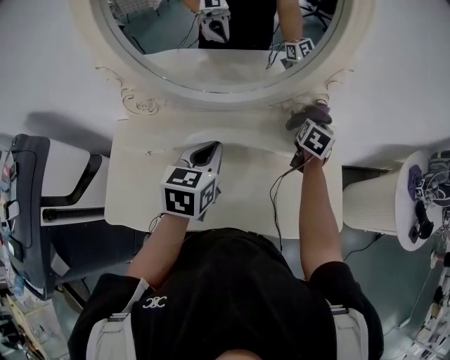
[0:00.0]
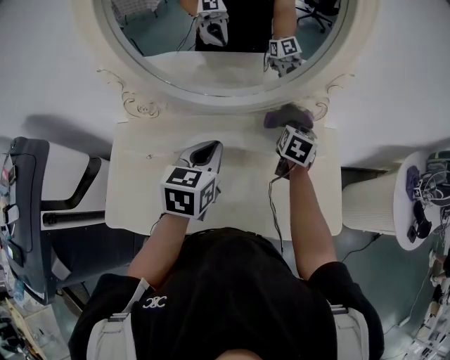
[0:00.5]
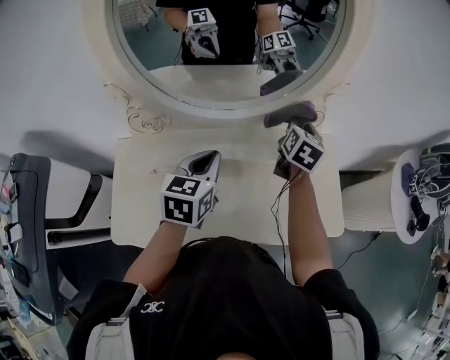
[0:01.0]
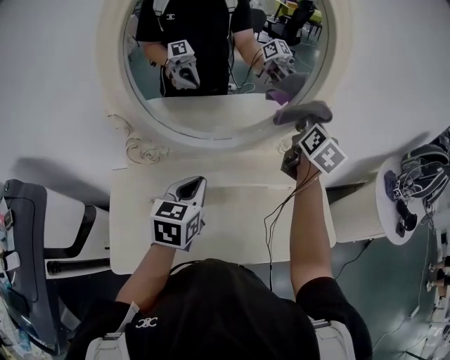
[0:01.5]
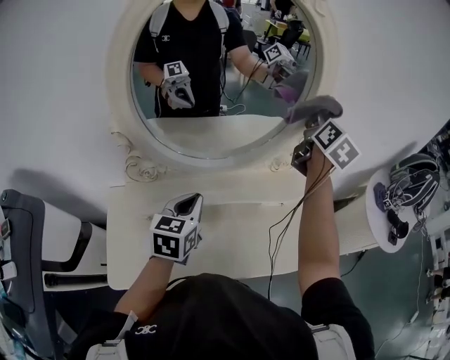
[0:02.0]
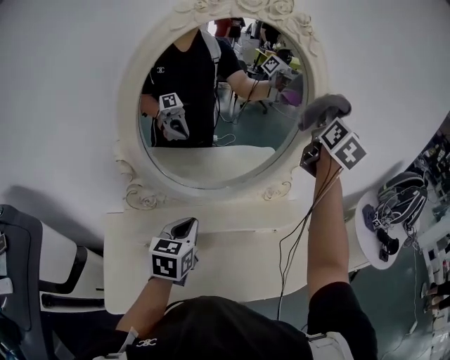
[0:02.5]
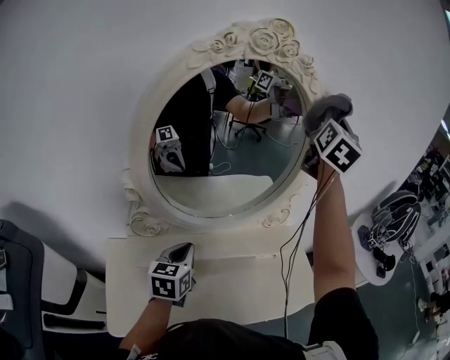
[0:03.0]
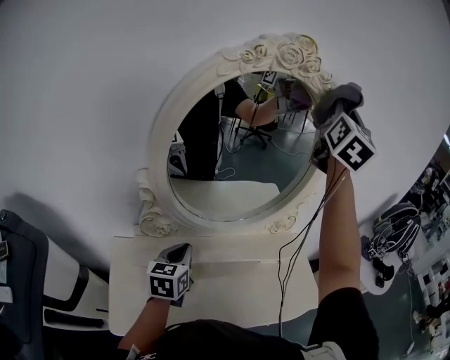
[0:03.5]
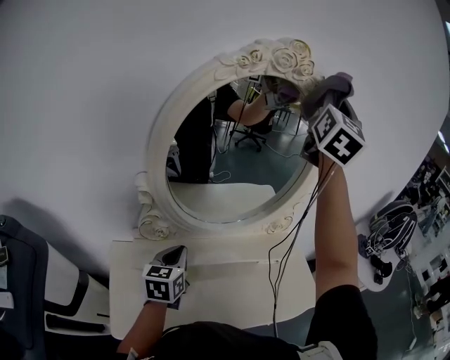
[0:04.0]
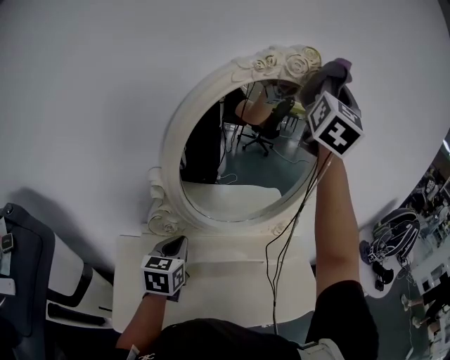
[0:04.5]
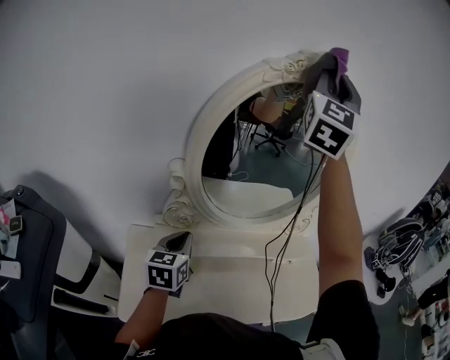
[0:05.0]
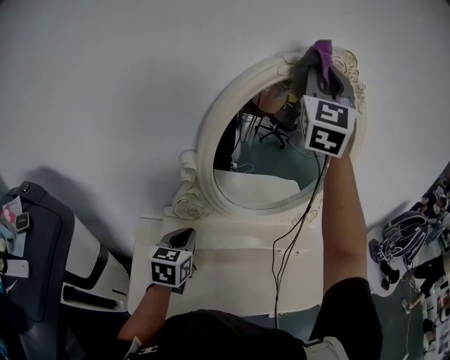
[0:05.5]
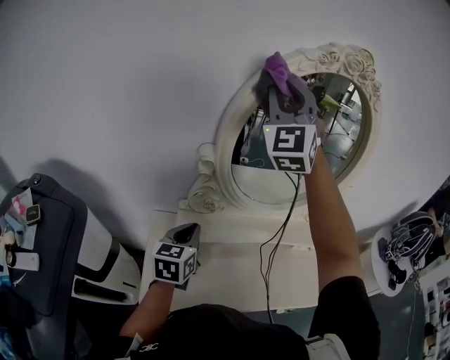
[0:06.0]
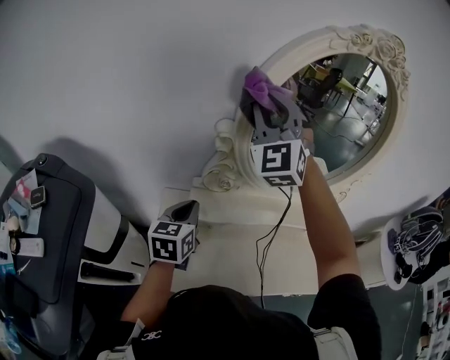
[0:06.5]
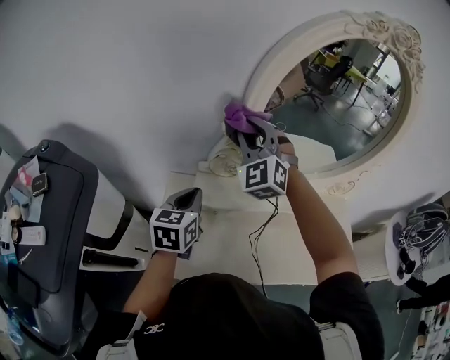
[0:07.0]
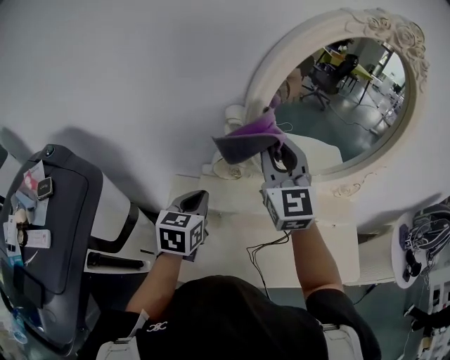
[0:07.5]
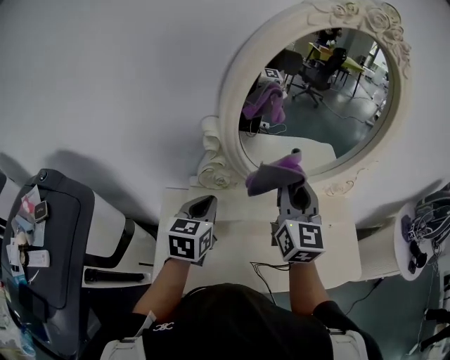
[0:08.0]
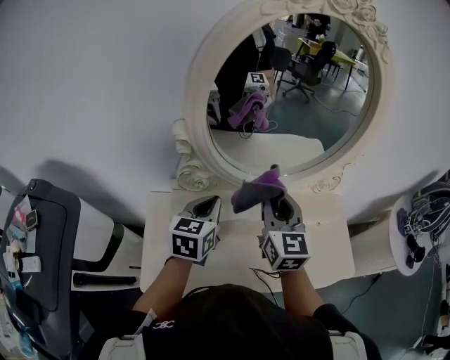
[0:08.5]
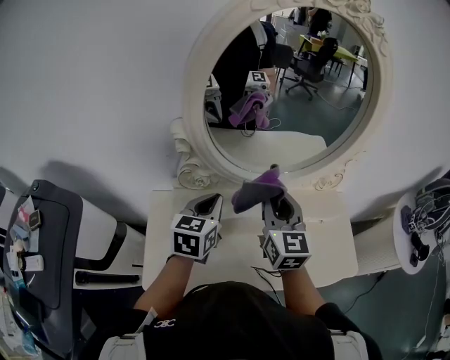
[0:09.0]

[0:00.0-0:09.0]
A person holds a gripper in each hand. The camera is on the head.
0:00.0 to 0:02.0: The right gripper heads upward, covering approximately 30 cm, and tips its fingers upward by about 30 degrees. Meanwhile the left gripper travels to the left by roughly 5 cm.
0:02.0 to 0:04.5: The right gripper moves upward and to the left, some 35 cm, and points its fingers some 30 degrees further upward; the left gripper goes roughly 10 cm to the left.
0:04.5 to 0:07.0: The right gripper shifts approximately 50 cm downward and to the left, and tilts its fingers approximately 40 degrees downward. Meanwhile the left gripper heads to the left, covering roughly 15 cm.
0:07.0 to 0:09.0: The two grippers go some 20 cm to the right. The right gripper rolls clockwise, seen from behind, by roughly 60 degrees.

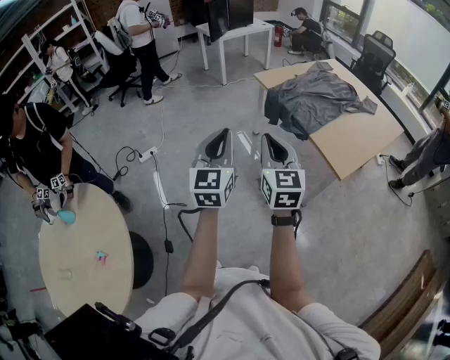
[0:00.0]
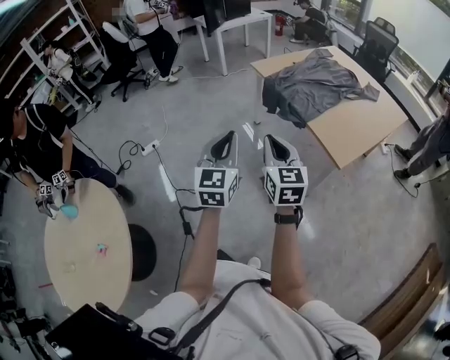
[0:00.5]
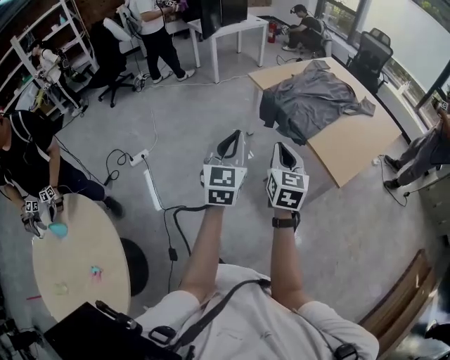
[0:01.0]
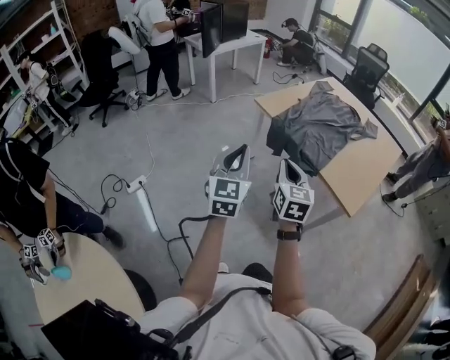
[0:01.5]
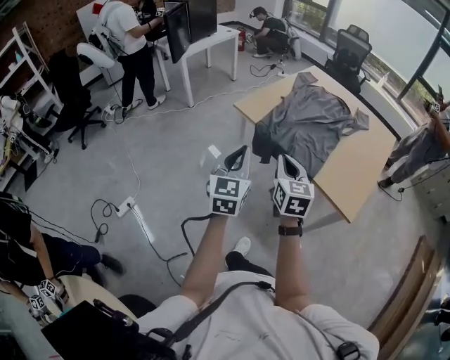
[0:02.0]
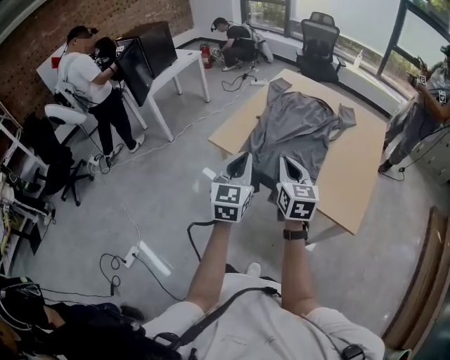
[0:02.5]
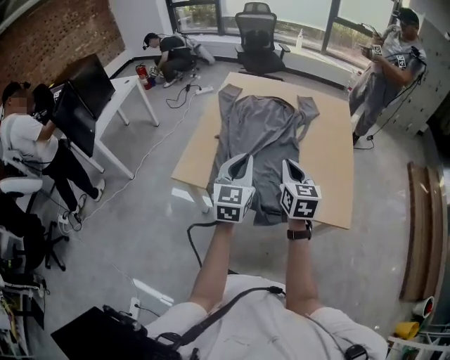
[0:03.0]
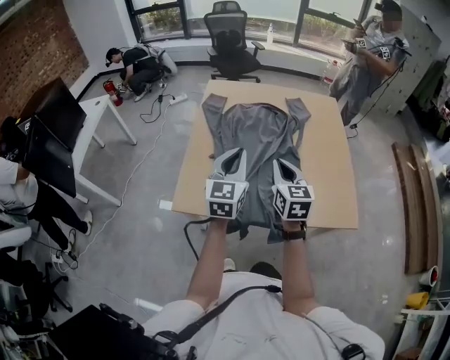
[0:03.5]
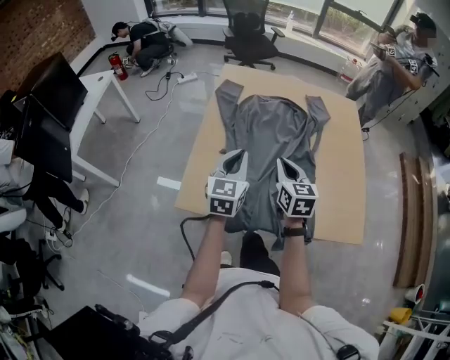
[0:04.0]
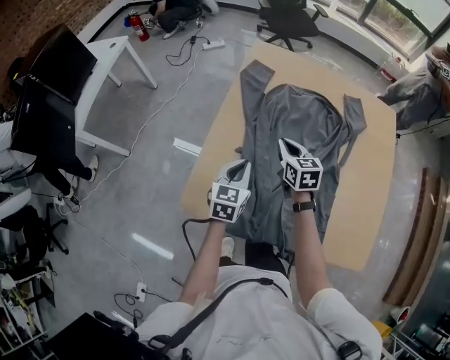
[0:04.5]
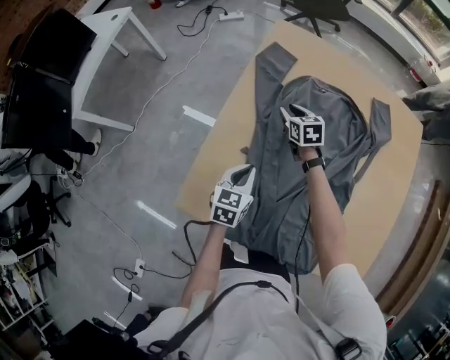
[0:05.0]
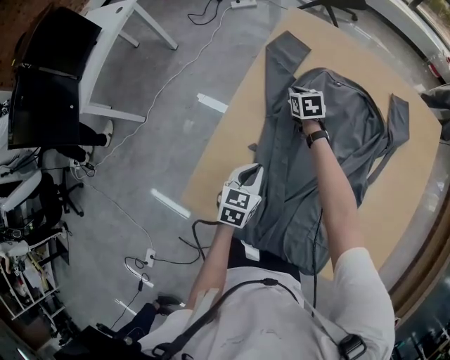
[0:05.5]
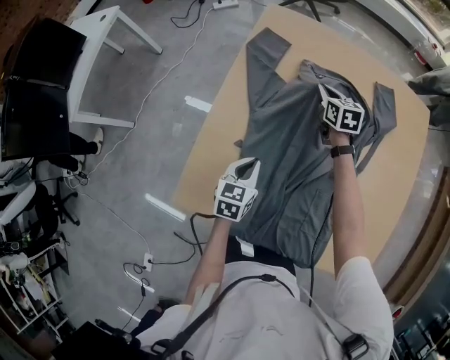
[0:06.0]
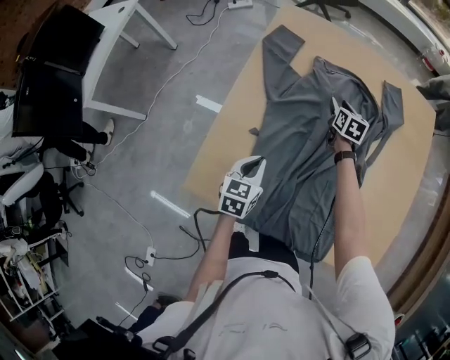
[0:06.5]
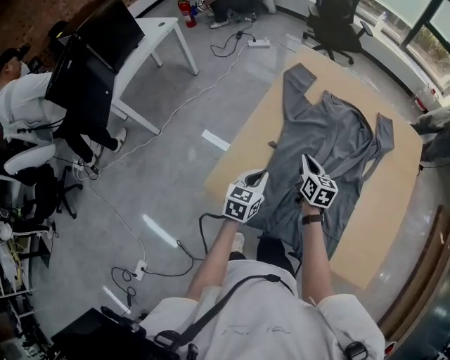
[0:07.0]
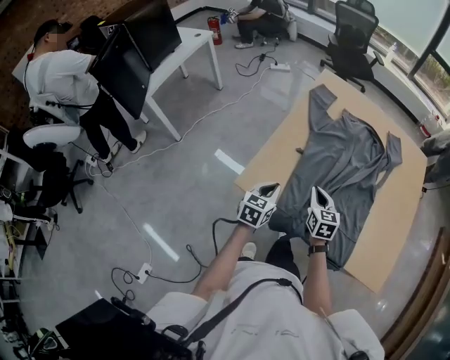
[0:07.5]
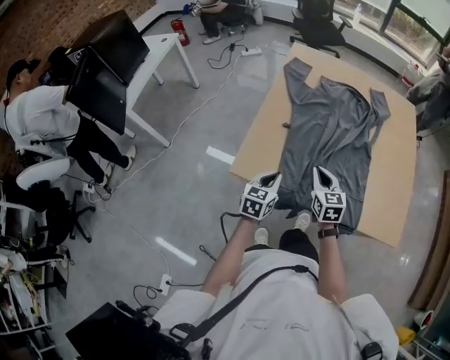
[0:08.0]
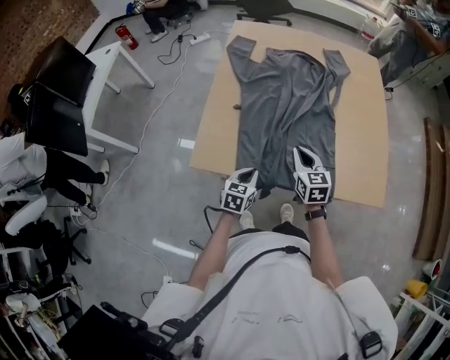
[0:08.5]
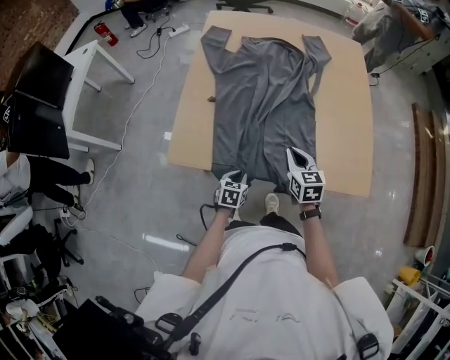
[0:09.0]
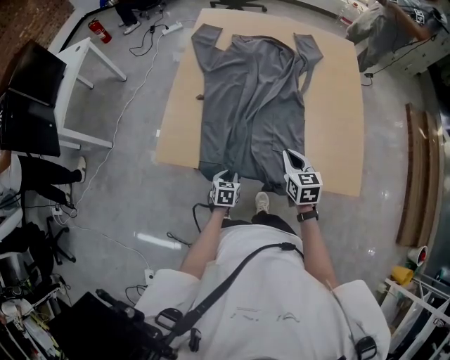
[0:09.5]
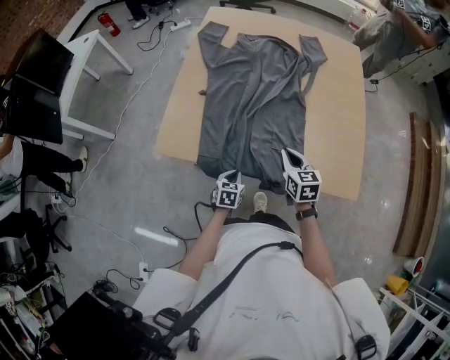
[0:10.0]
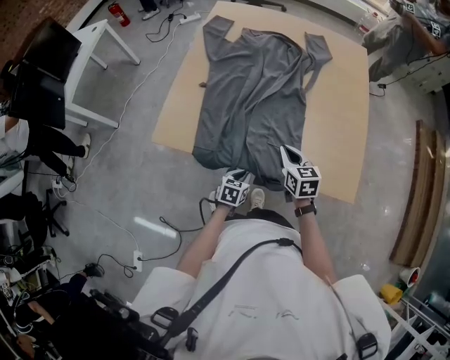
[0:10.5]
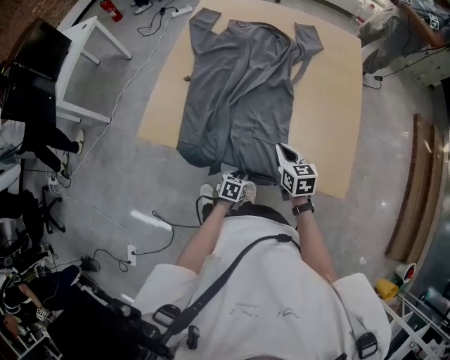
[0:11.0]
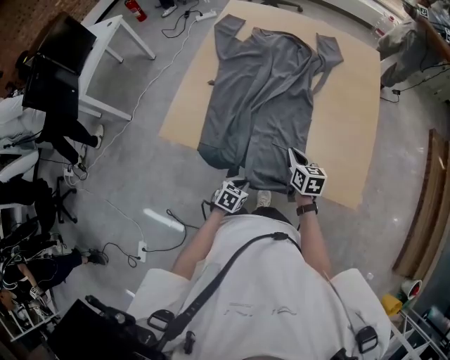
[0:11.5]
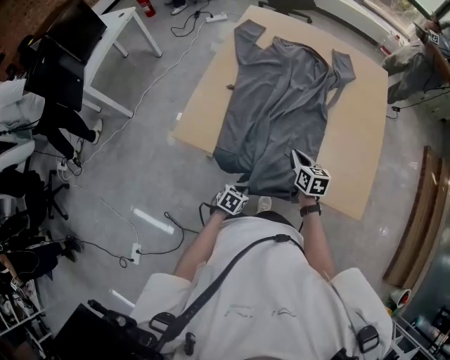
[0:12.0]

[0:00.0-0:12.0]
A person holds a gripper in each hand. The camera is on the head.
0:00.0 to 0:02.0: The two grippers go approximately 30 cm forward. The left gripper swivels roughly 20 degrees; the right gripper turns by some 30 degrees.
0:02.0 to 0:04.0: Both grippers are carried roughly 50 cm. The right gripper changes its angle by roughly 30 degrees. Meanwhile the left gripper rotates about 40 degrees.
0:04.0 to 0:06.0: The right gripper is displaced forward and downward by about 40 cm, and opens, then closes once more; the left gripper goes some 25 cm downward and forward, and swivels approximately 30 degrees.
0:06.0 to 0:08.0: The left gripper heads backward, covering approximately 20 cm. Meanwhile the right gripper is displaced backward by some 50 cm, and opens and closes again.
0:08.0 to 0:10.0: The left gripper travels to the right and downward by approximately 25 cm, rotates some 20 degrees, and opens, then closes again, while the right gripper shifts about 20 cm to the right.
0:10.0 to 0:12.0: The left gripper is displaced backward by about 5 cm, goes to the right and returns, about 10 cm each way, and opens, then closes once more. Meanwhile the right gripper moves roughly 5 cm to the right and comes back.

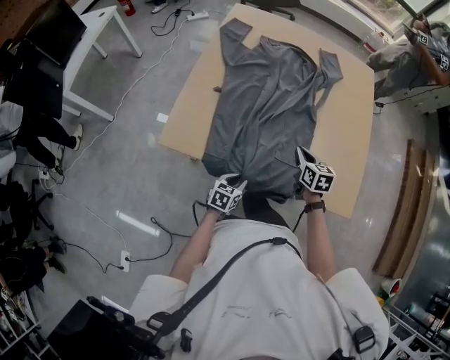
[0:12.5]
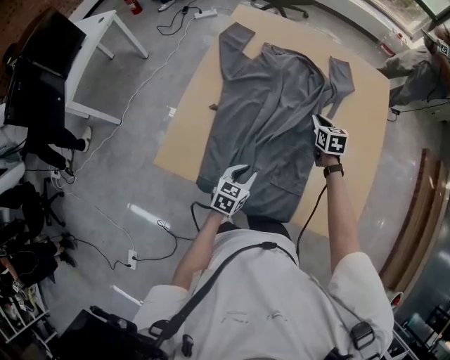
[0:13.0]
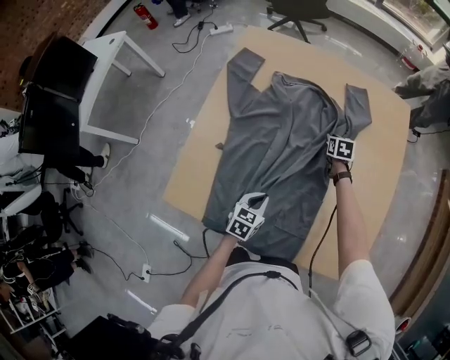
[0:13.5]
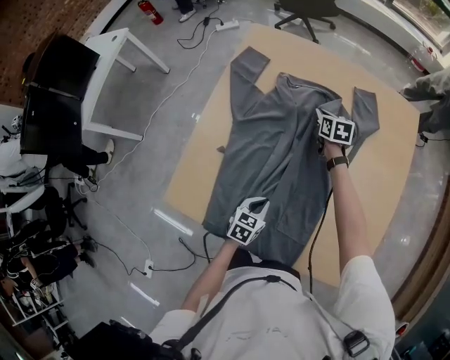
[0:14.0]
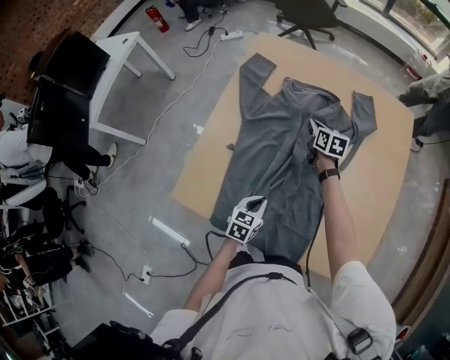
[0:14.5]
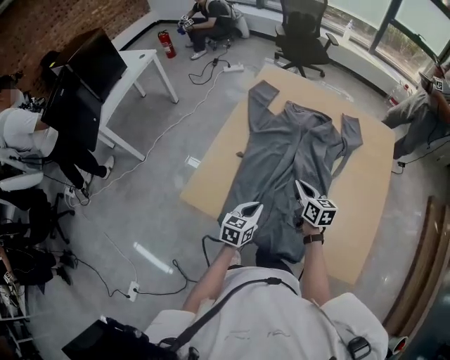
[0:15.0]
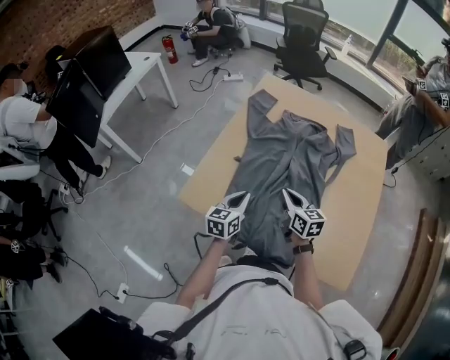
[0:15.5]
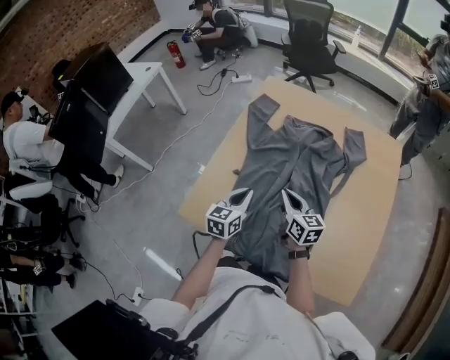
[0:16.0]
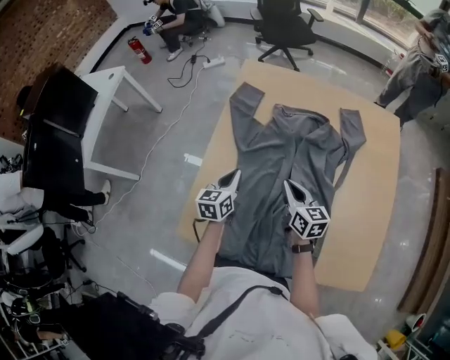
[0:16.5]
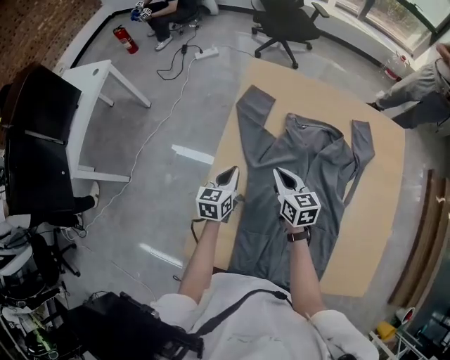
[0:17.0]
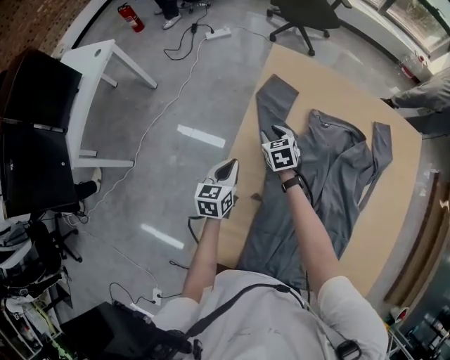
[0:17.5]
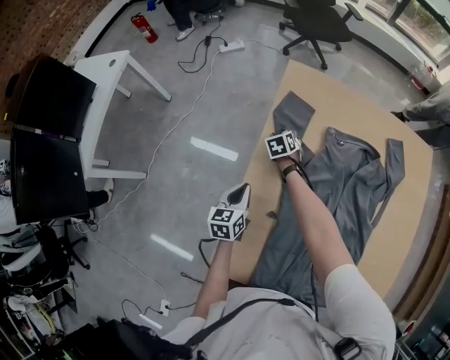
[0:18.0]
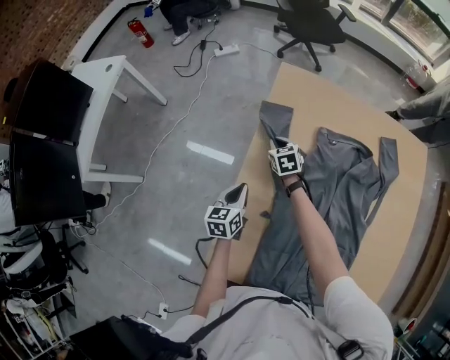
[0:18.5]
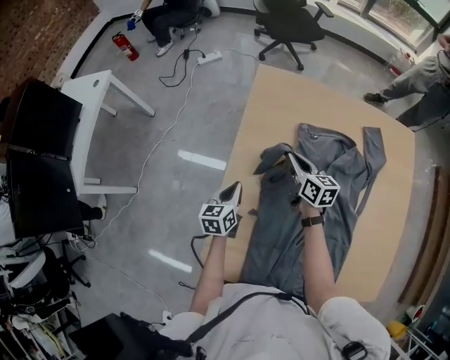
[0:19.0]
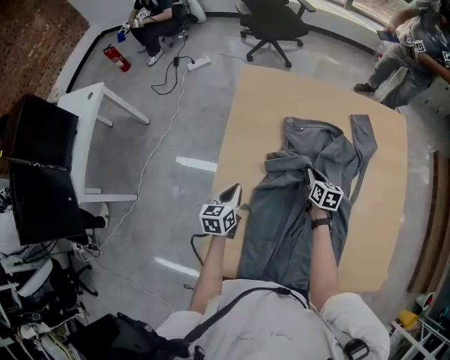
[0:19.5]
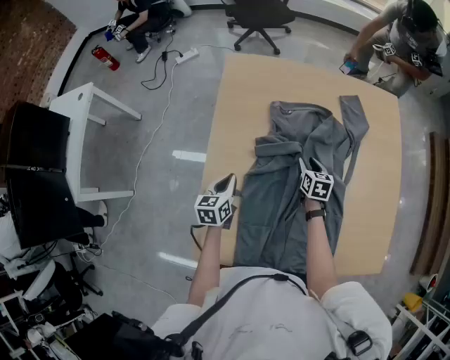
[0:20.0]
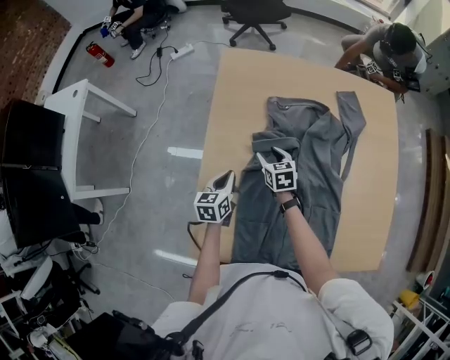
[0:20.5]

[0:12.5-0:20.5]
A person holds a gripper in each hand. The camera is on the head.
0:12.5 to 0:14.5: The left gripper is displaced forward by approximately 20 cm, and closes its fingers; the right gripper goes some 35 cm forward.
0:14.5 to 0:16.5: The right gripper goes some 20 cm backward, to the left and upward, while the left gripper heads forward, to the left and upward, covering some 25 cm, and changes its angle by approximately 20 degrees.
0:16.5 to 0:18.5: The right gripper is displaced forward, to the left and downward by roughly 40 cm, swivels about 40 degrees, and opens, then closes again, while the left gripper goes about 15 cm to the left, downward and forward.
0:18.5 to 0:20.5: The right gripper travels to the right and backward by approximately 20 cm, and opens. The left gripper heads to the right, covering roughly 10 cm.
